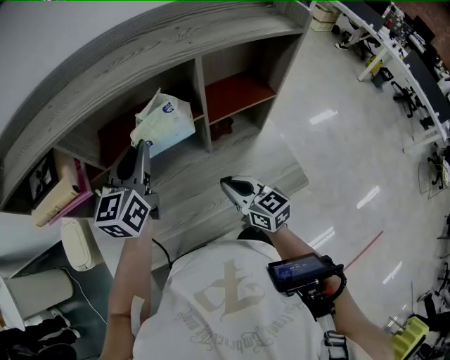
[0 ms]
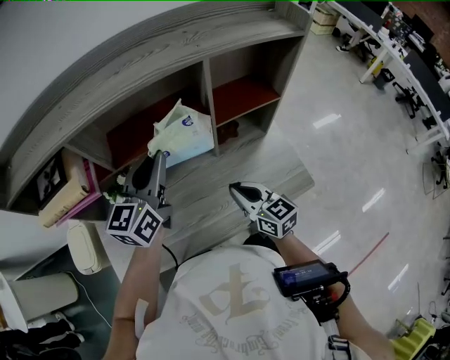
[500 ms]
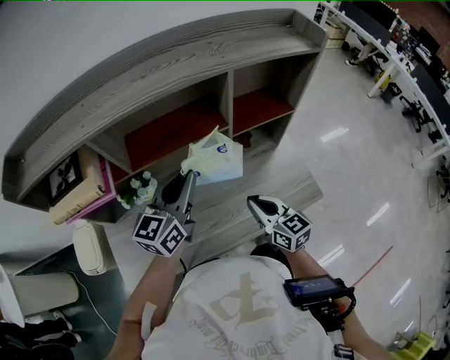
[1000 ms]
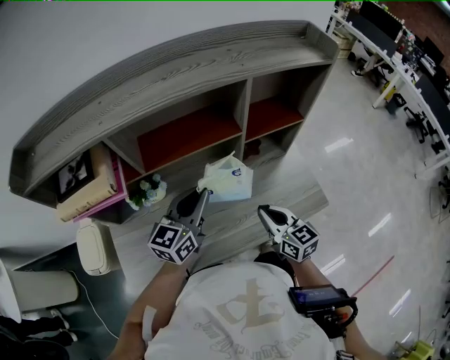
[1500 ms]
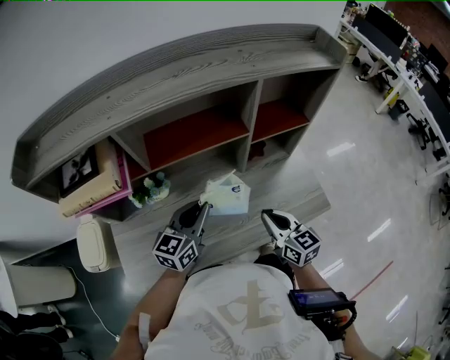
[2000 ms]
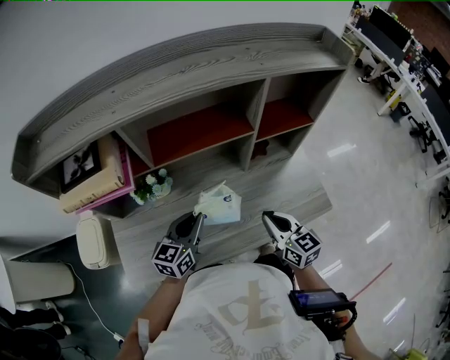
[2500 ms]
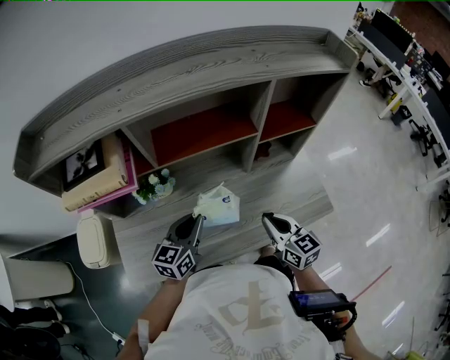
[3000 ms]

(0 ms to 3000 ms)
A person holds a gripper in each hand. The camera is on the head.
0 ms - 1500 ms: The left gripper goes approximately 10 cm backward and downward.
1500 ms - 3000 ms: The left gripper is displaced downward, to the left and backward by approximately 15 cm.

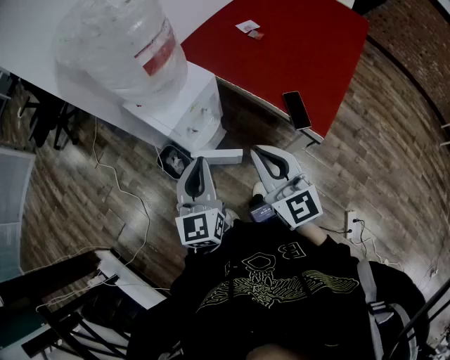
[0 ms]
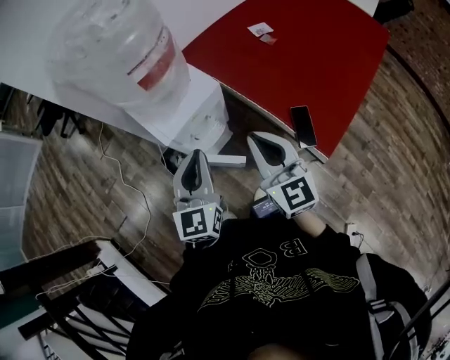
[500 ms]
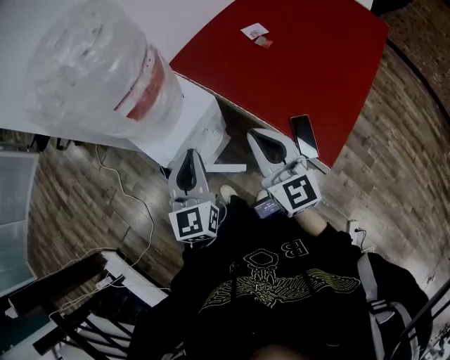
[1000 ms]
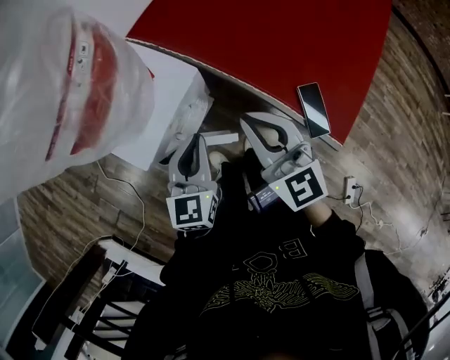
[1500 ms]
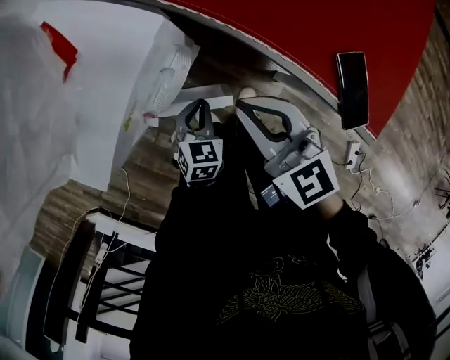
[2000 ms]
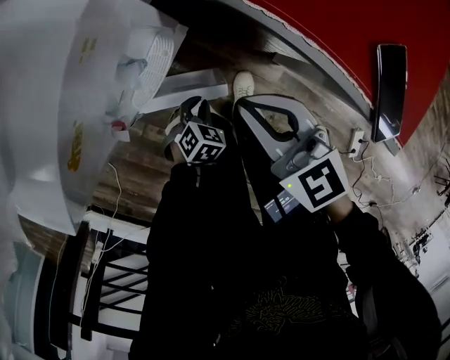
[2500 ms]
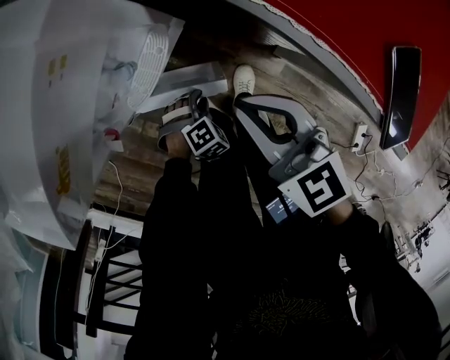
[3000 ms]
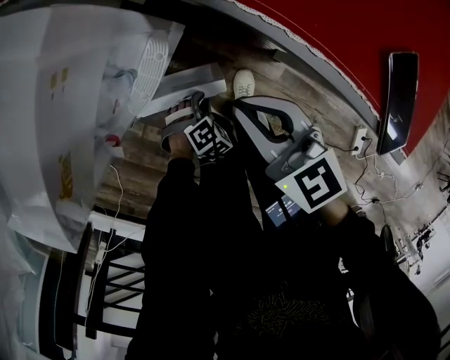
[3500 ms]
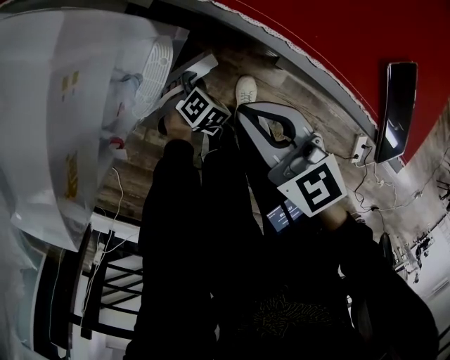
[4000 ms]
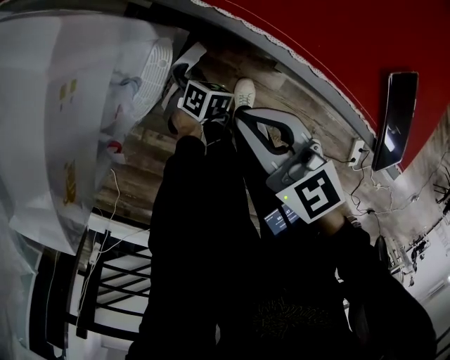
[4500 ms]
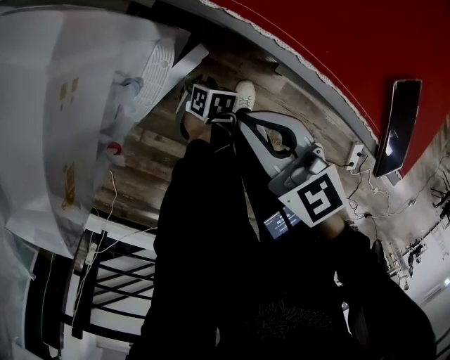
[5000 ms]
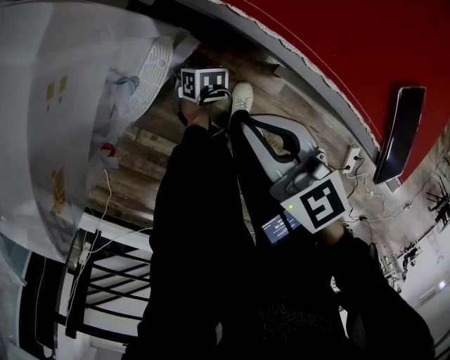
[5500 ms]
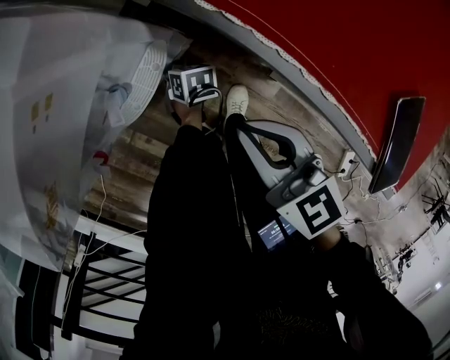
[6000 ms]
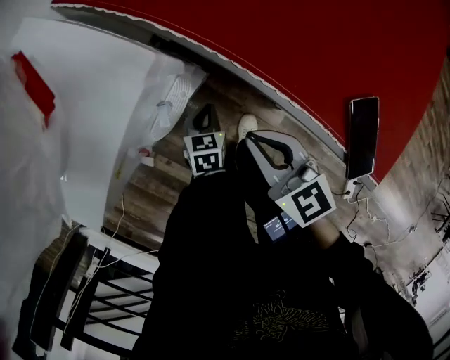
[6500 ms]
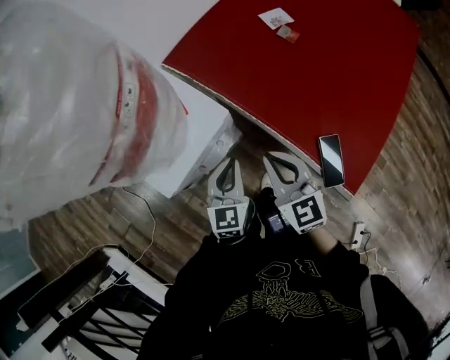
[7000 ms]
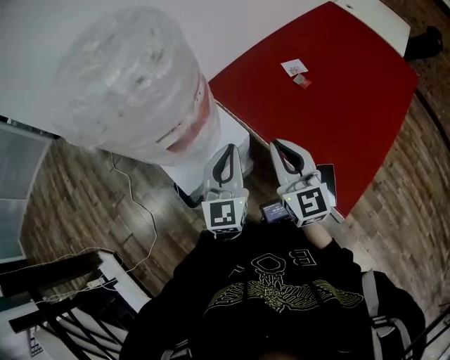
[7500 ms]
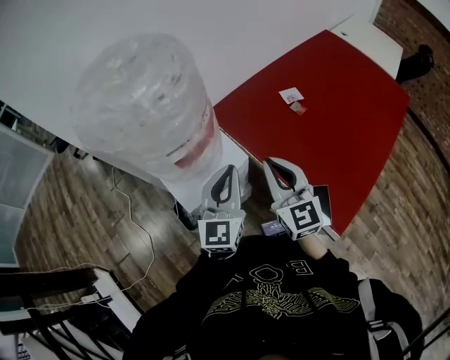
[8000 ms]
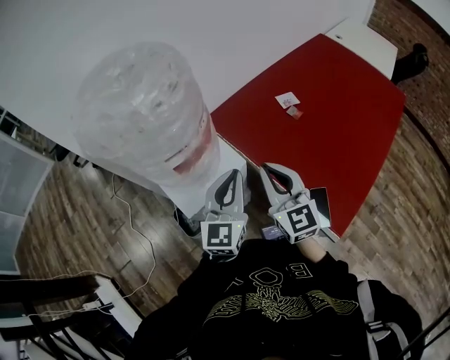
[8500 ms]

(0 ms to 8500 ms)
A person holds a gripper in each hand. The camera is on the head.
0 ms - 2000 ms: Both grippers travel together downward and forward, approximately 40 cm. The left gripper points its fingers about 50 degrees further downward.
2000 ms - 4000 ms: The left gripper is displaced downward by approximately 20 cm, and swivels roughly 40 degrees, while the right gripper heads downward, covering approximately 10 cm.
4000 ms - 6500 ms: The left gripper travels upward by roughly 10 cm, and rolls counterclockwise, seen from behind, by some 50 degrees.
6500 ms - 8500 ms: The left gripper heads upward, covering about 60 cm, and points its fingers approximately 50 degrees further upward, while the right gripper goes roughly 35 cm upward, and swivels roughly 30 degrees.

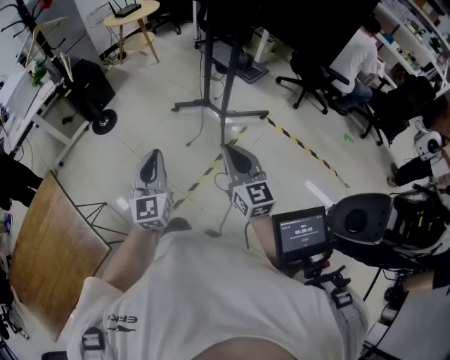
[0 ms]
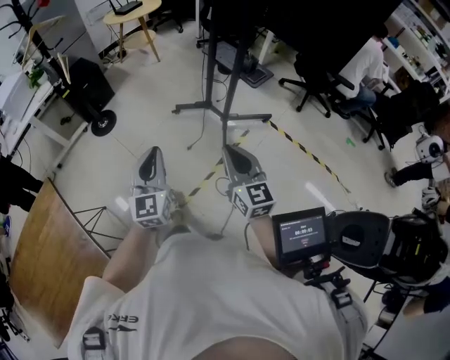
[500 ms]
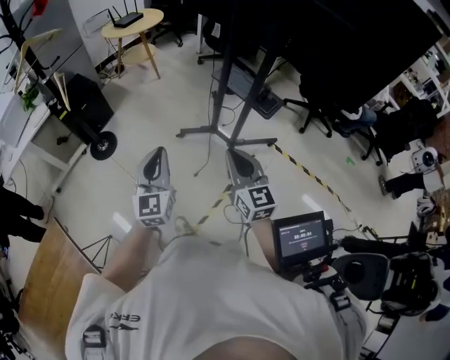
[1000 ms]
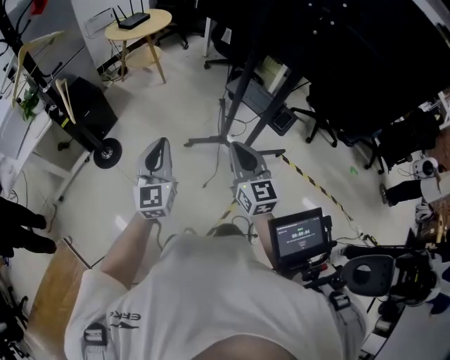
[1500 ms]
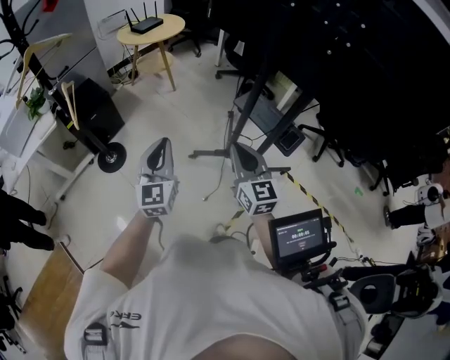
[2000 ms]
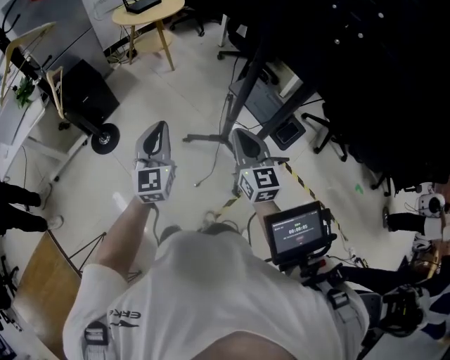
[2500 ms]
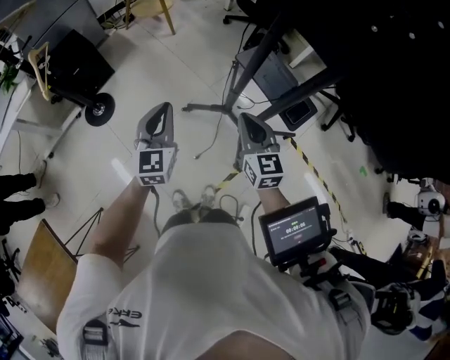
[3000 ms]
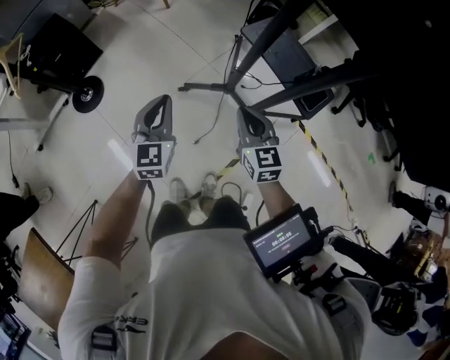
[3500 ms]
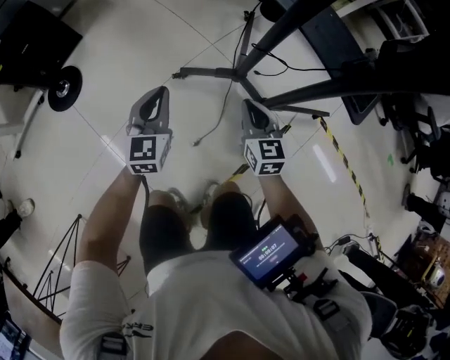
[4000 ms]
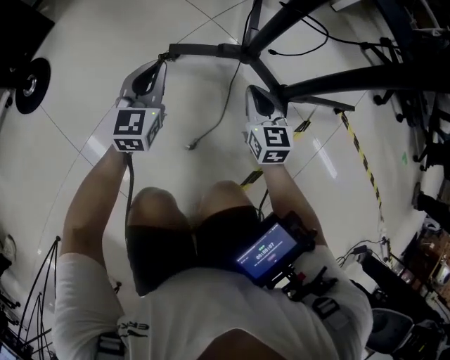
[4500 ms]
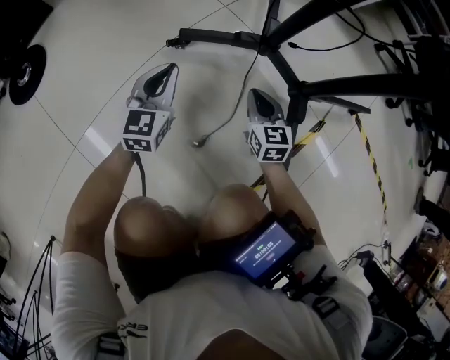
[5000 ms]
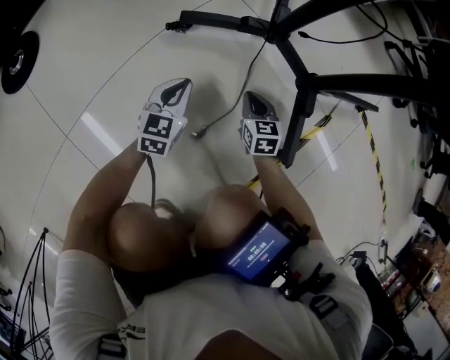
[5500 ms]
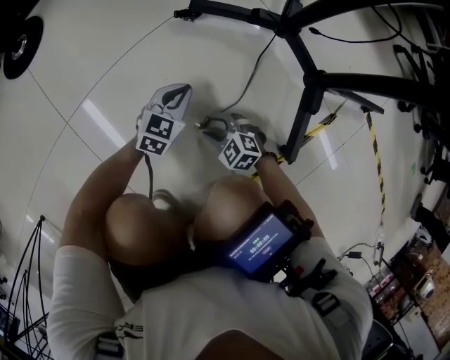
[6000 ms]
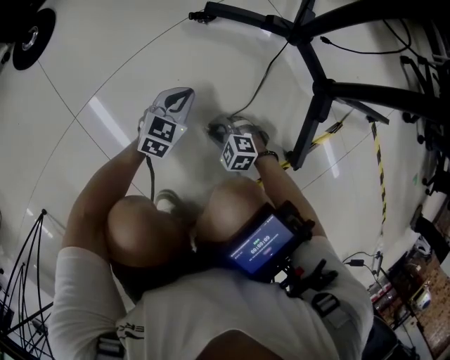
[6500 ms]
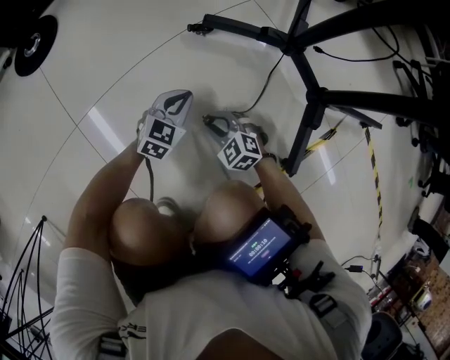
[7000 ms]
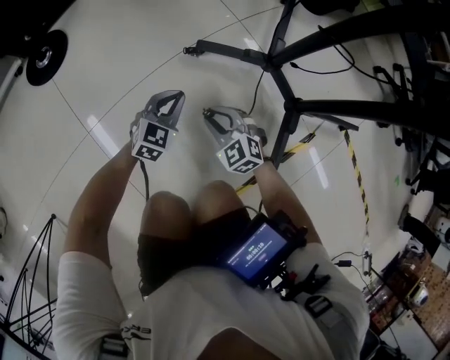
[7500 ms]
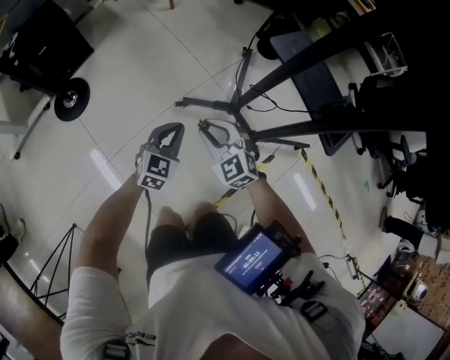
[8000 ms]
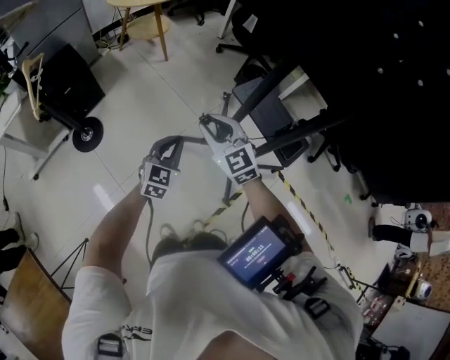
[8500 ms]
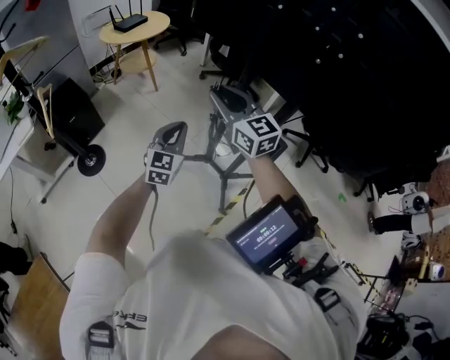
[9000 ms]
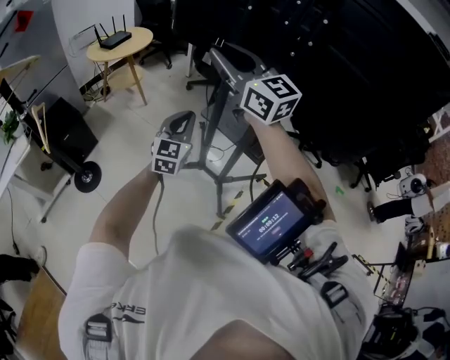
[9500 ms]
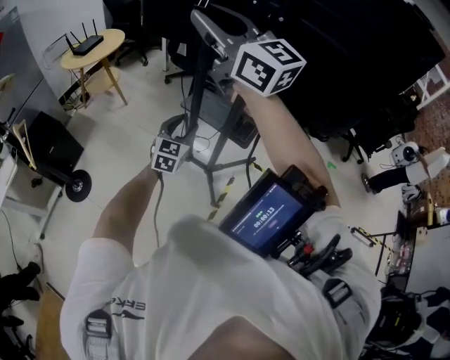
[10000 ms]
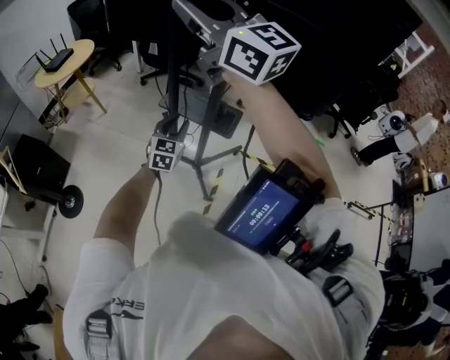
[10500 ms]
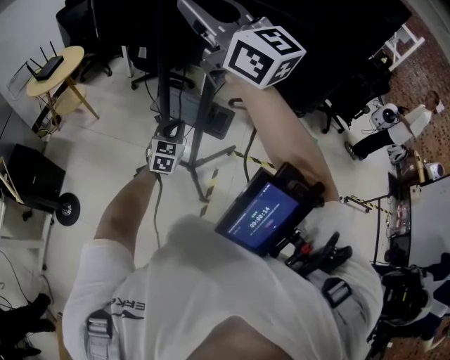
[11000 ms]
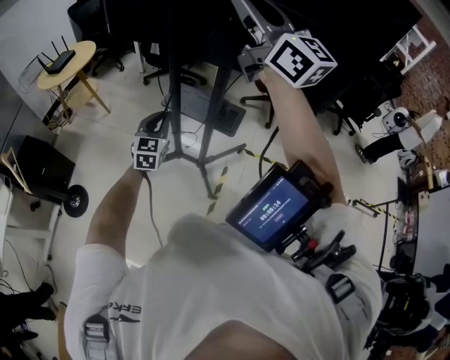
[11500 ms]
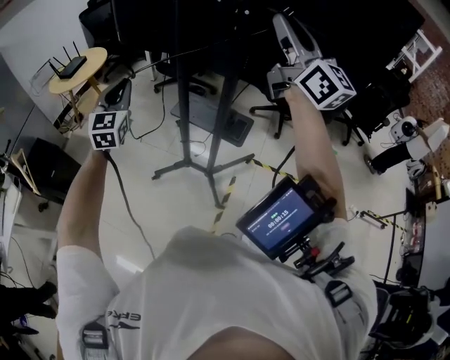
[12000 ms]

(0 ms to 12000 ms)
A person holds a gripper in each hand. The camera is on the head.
0 ms - 2000 ms: The pair of grippers is taken forward, roughly 40 cm.
2000 ms - 4000 ms: The grippers both shift downward by roughly 50 cm. The right gripper swivels approximately 20 degrees.
4000 ms - 6000 ms: The two grippers go approximately 50 cm downward. The left gripper swivels approximately 20 degrees. Meanwhile the right gripper changes its angle by approximately 70 degrees, and opens.
6000 ms - 8000 ms: The grippers both shift upward by approximately 50 cm. The right gripper changes its angle by roughly 30 degrees, and closes.
8000 ms - 10000 ms: The left gripper heads upward, covering roughly 40 cm, swivels approximately 20 degrees, and opens its fingers. The right gripper moves upward, some 80 cm, and tilts its fingers roughly 50 degrees upward.
10000 ms - 12000 ms: The left gripper shifts approximately 25 cm upward, to the left and forward, and closes up, while the right gripper shifts approximately 25 cm to the right, and rotates approximately 20 degrees.

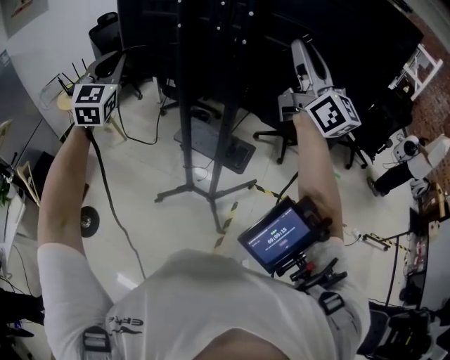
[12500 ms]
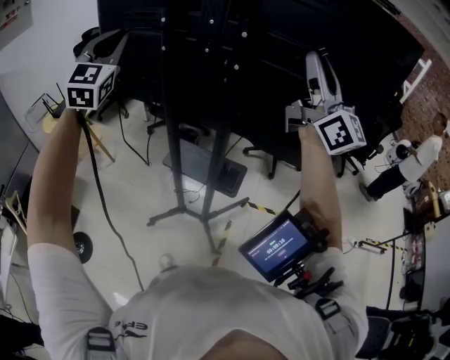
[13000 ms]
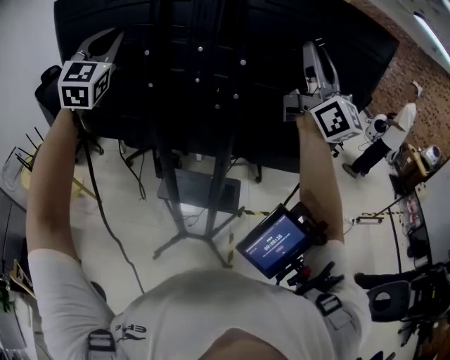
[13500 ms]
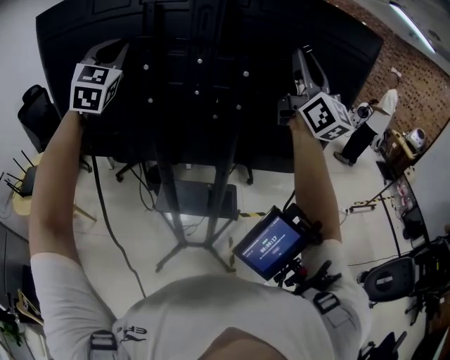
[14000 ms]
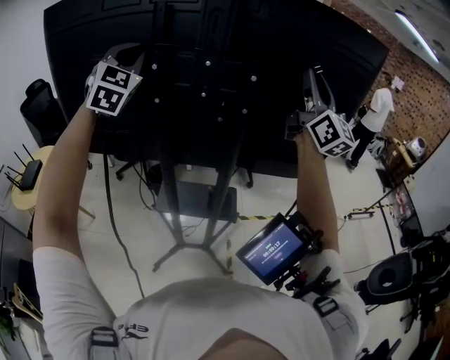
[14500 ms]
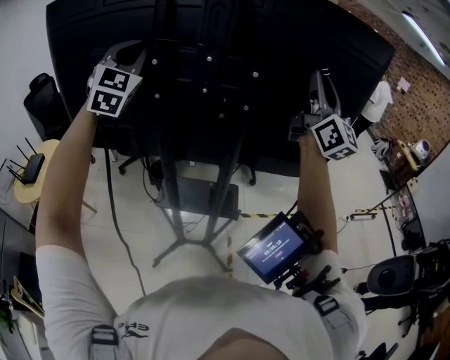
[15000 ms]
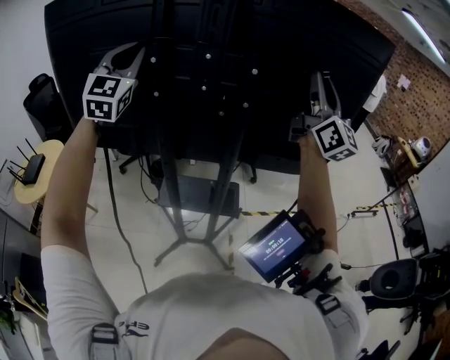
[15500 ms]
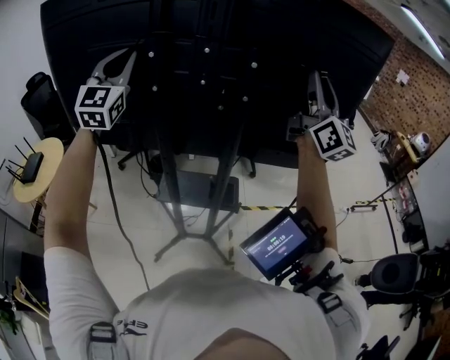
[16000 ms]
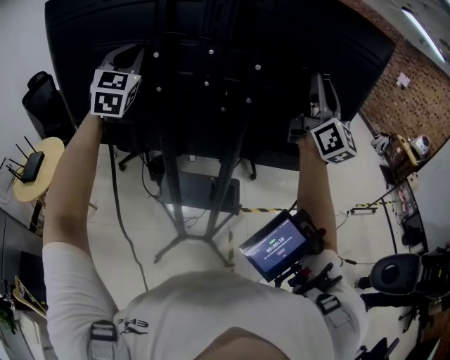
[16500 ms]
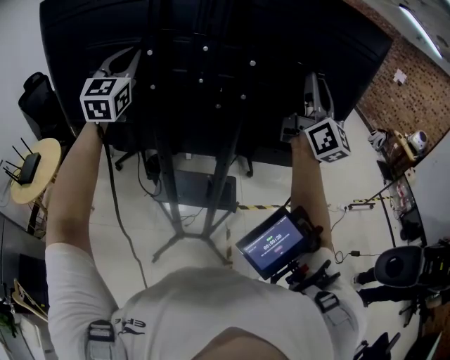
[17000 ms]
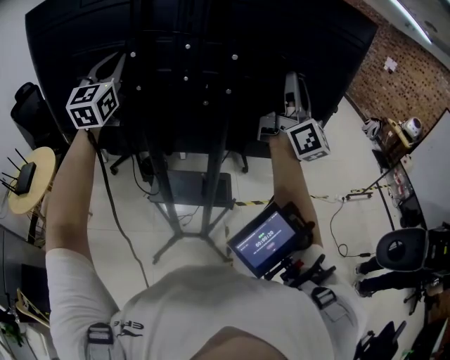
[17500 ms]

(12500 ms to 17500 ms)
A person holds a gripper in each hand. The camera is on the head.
12500 ms - 15000 ms: The right gripper moves roughly 15 cm, and turns by approximately 40 degrees; the left gripper shifts by about 30 cm, and swivels about 30 degrees.
15000 ms - 17500 ms: The right gripper shifts some 5 cm downward; the left gripper rotates approximately 30 degrees.
